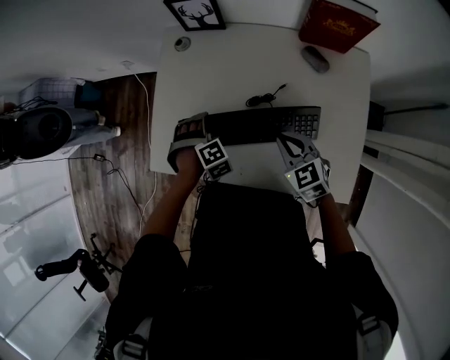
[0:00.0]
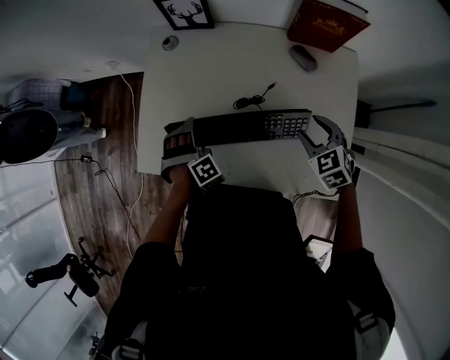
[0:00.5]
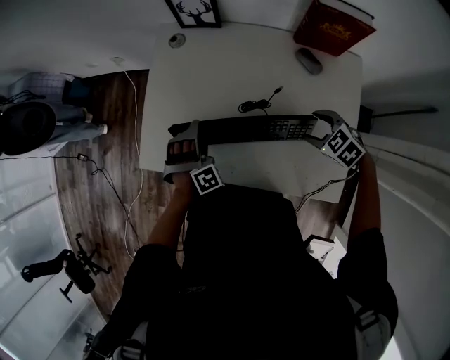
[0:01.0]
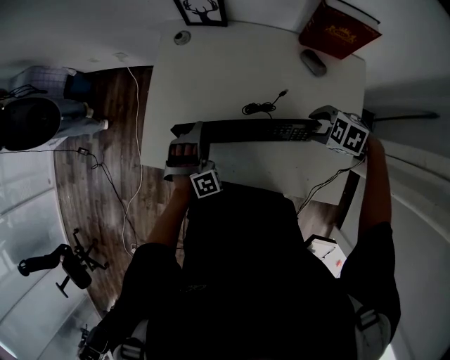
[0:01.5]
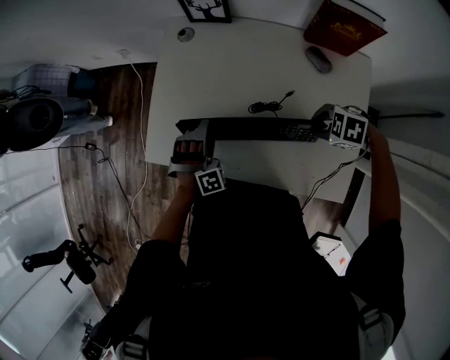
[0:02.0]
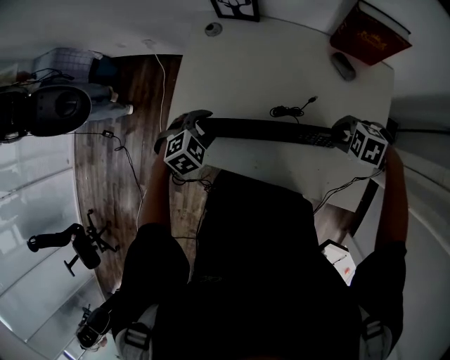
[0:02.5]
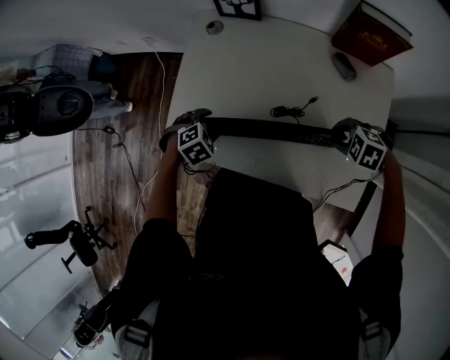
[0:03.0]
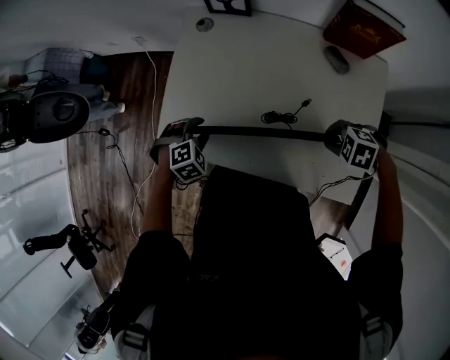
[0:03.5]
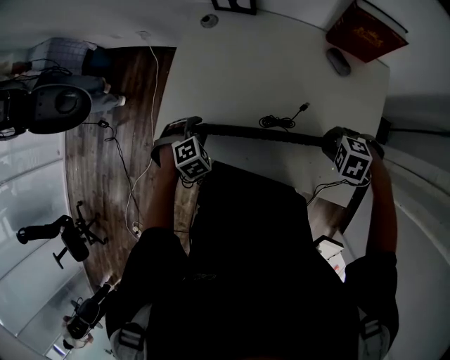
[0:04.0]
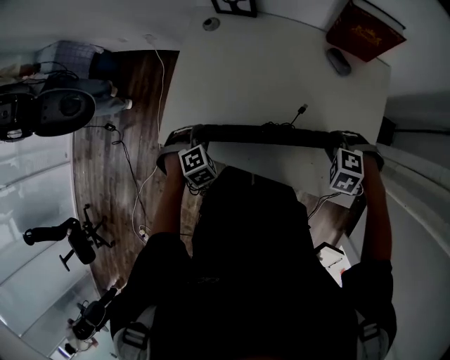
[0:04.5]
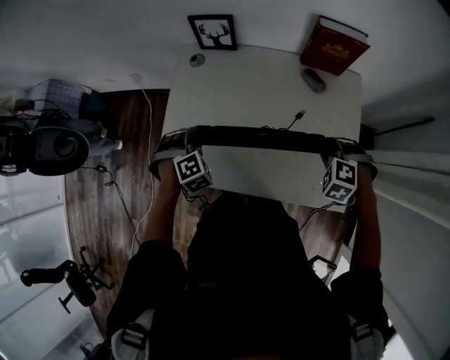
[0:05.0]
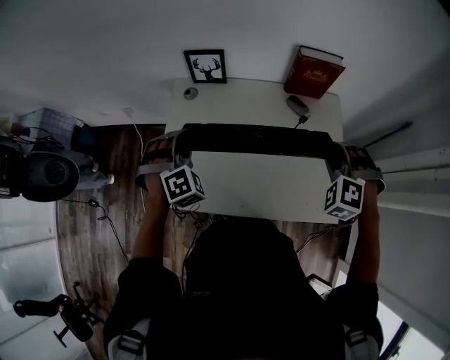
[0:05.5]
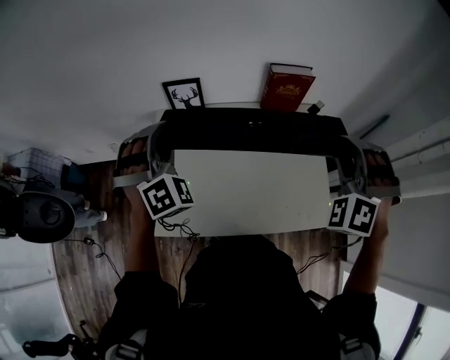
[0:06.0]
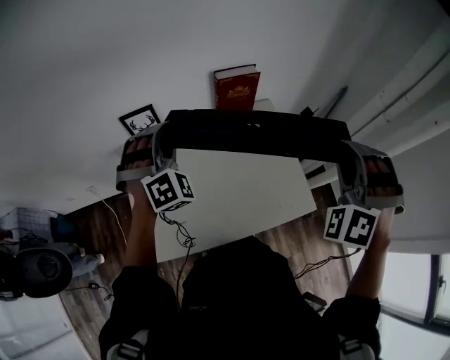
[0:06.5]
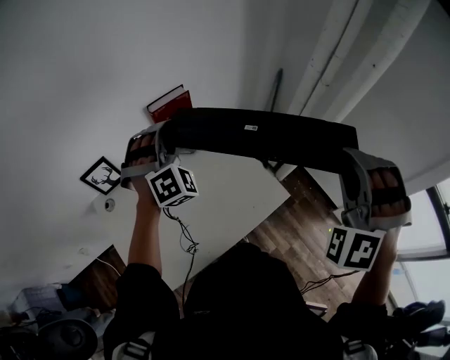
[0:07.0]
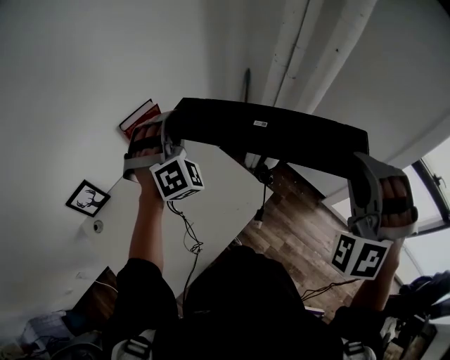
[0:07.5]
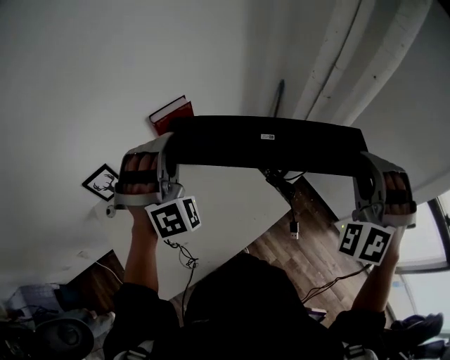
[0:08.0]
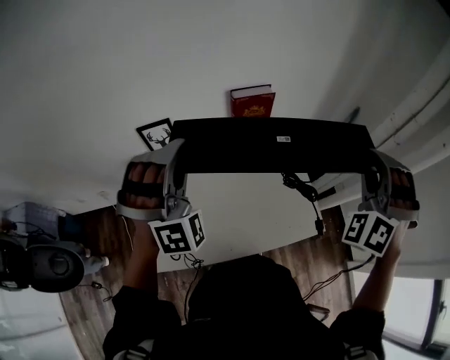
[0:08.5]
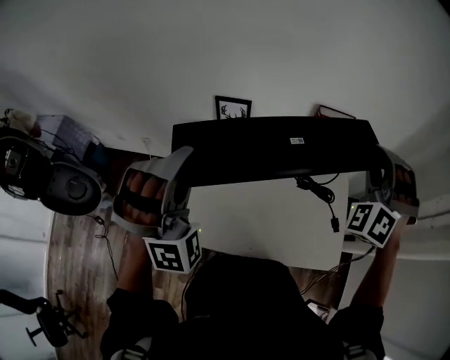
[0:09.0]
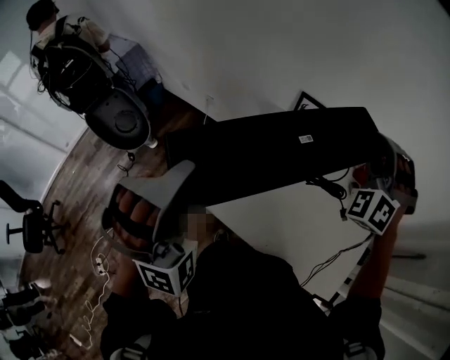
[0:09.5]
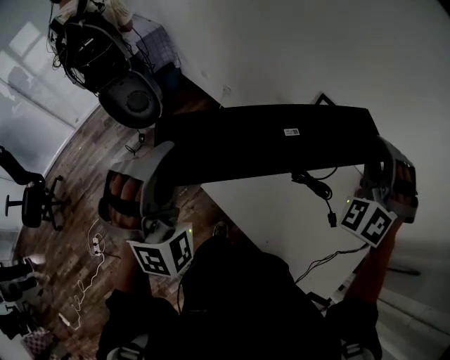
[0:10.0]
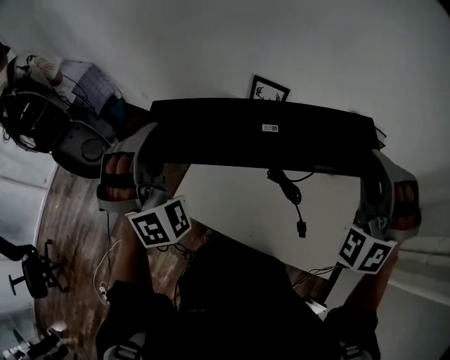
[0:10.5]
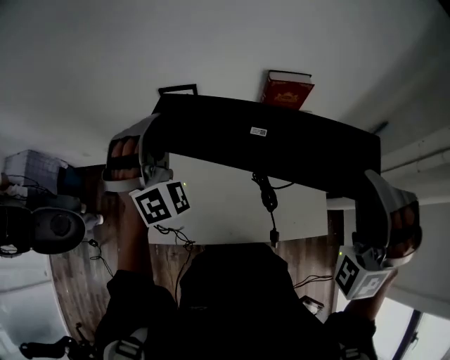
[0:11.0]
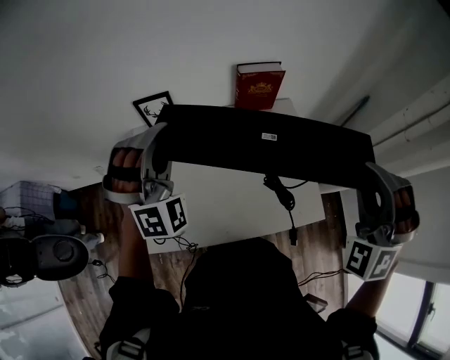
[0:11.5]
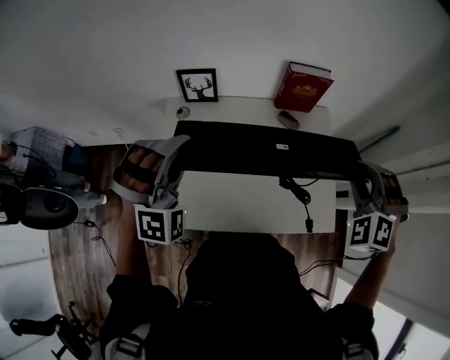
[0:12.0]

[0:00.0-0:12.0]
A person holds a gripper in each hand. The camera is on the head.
0:00.0 to 0:02.0: The right gripper shifts by some 10 cm, rotates roughly 60 degrees, and opens its fingers. The left gripper changes its angle by roughly 30 degrees.
0:02.0 to 0:04.0: The right gripper shifts by some 5 cm. The left gripper moves about 5 cm, points its fingers about 30 degrees further downward, and closes up.
0:04.0 to 0:06.0: Both grippers travel together upward, roughly 35 cm. The left gripper tilts its fingers about 50 degrees upward. The right gripper tips its fingers upward by approximately 50 degrees.
0:06.0 to 0:08.0: The left gripper shifts by roughly 30 cm, and changes its angle by roughly 40 degrees; the right gripper moves about 30 cm, and changes its angle by approximately 40 degrees.
0:08.0 to 0:10.0: The left gripper ends up about 50 cm from where it was, and swivels some 70 degrees; the right gripper shifts by roughly 60 cm, and changes its angle by roughly 70 degrees.
0:10.0 to 0:12.0: The left gripper moves approximately 30 cm, and rotates approximately 50 degrees, while the right gripper changes place by approximately 35 cm, and rotates approximately 40 degrees.

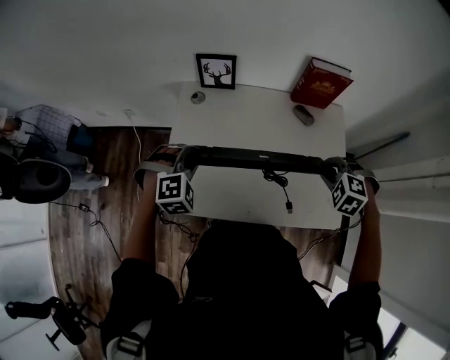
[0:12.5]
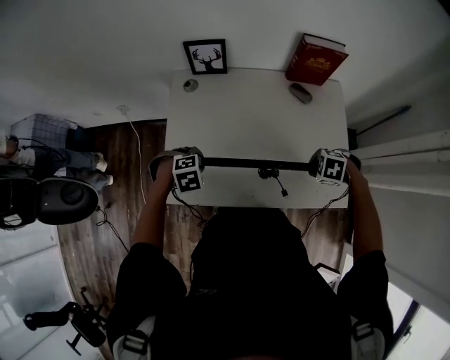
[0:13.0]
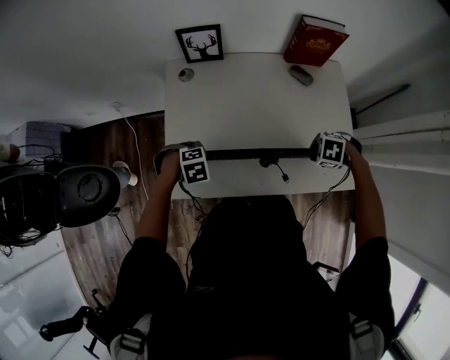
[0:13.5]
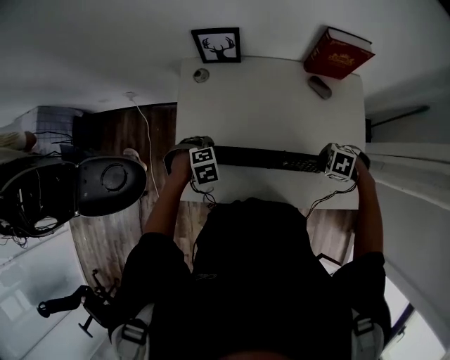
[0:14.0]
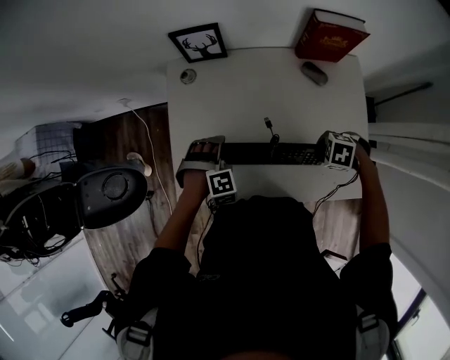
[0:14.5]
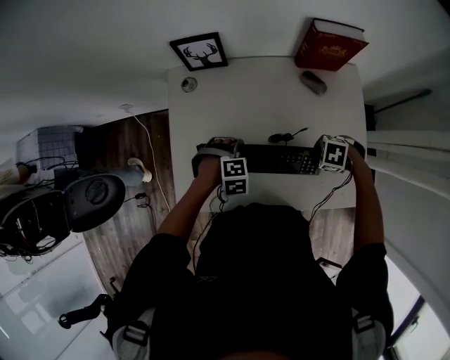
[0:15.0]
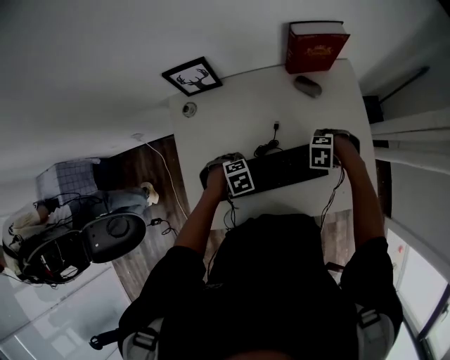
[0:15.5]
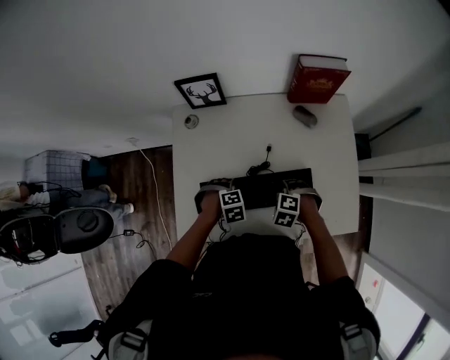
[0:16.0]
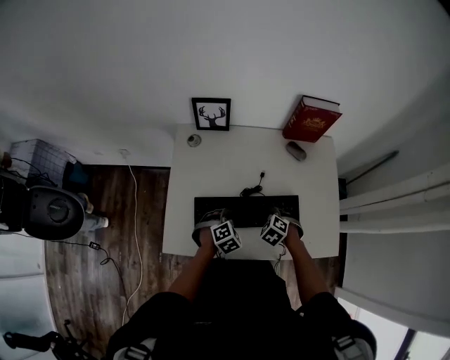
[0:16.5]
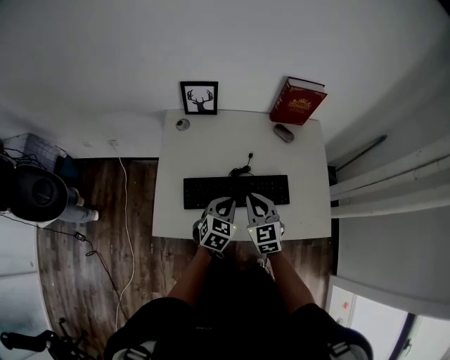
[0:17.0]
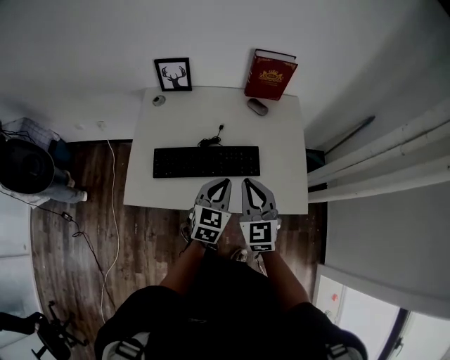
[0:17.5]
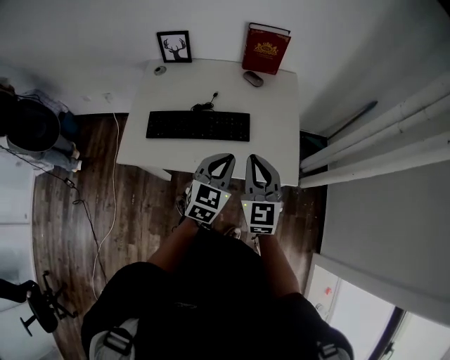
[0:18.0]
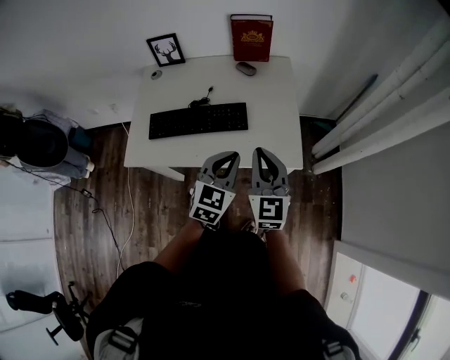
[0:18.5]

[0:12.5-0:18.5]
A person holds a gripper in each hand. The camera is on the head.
0:12.5 to 0:14.5: The two grippers go about 15 cm downward. The right gripper turns by roughly 40 degrees; the left gripper turns by some 20 degrees, and opens its fingers.
0:14.5 to 0:16.5: The right gripper changes place by some 15 cm, turns by some 30 degrees, and closes up. Meanwhile the left gripper changes place by some 10 cm, turns by roughly 40 degrees, and closes.
0:16.5 to 0:18.5: The left gripper moves to the right, upward and backward, some 40 cm, and tilts its fingers some 40 degrees upward. The right gripper moves upward, to the right and backward, about 40 cm, and tips its fingers upward by approximately 70 degrees.

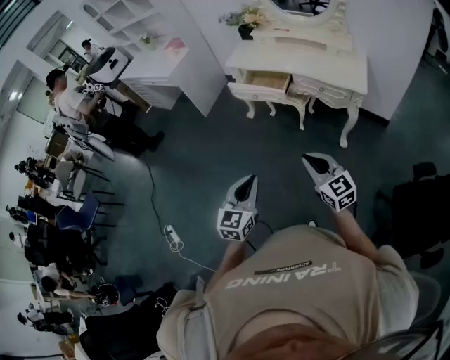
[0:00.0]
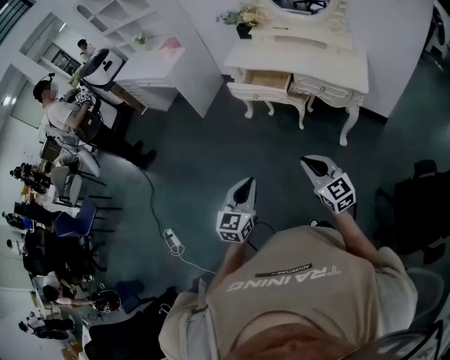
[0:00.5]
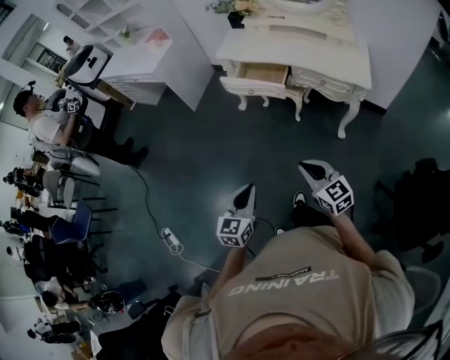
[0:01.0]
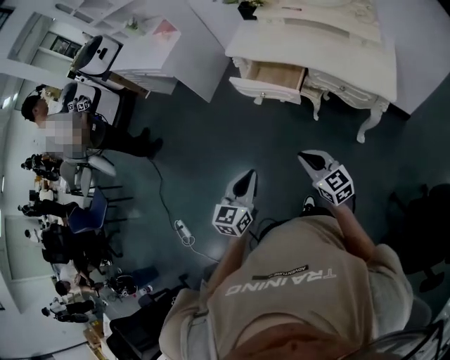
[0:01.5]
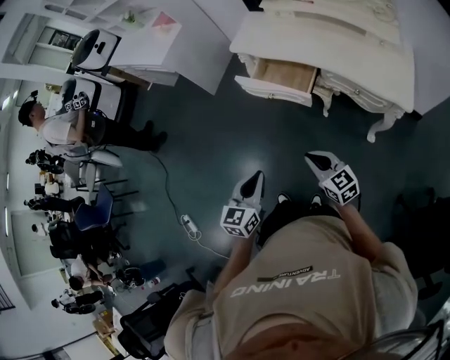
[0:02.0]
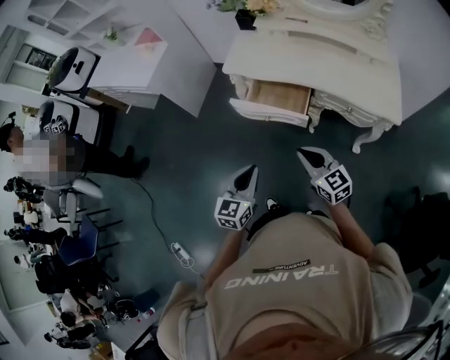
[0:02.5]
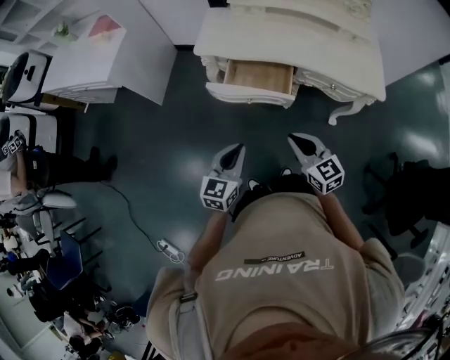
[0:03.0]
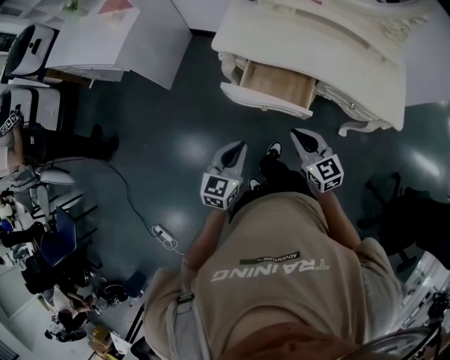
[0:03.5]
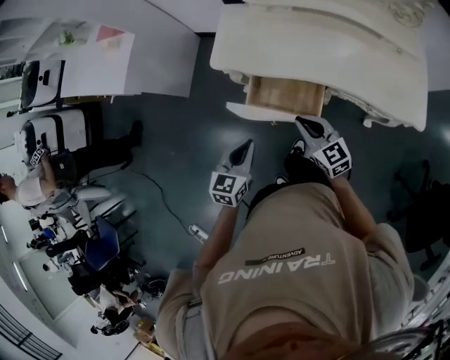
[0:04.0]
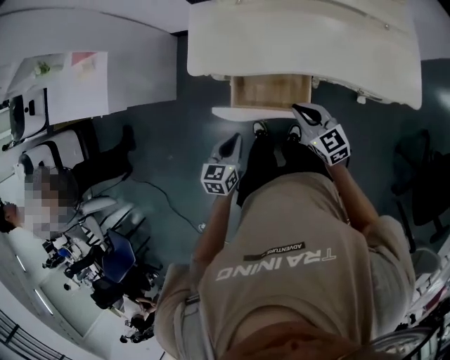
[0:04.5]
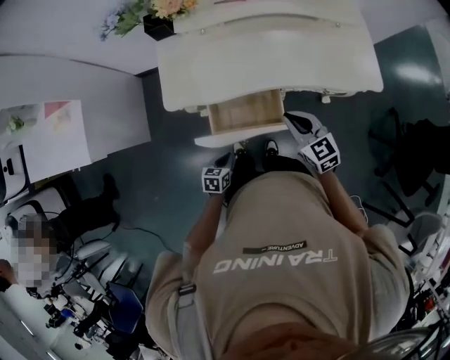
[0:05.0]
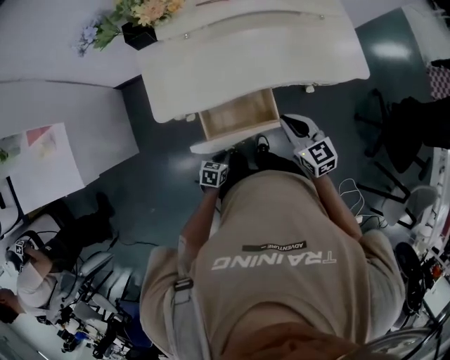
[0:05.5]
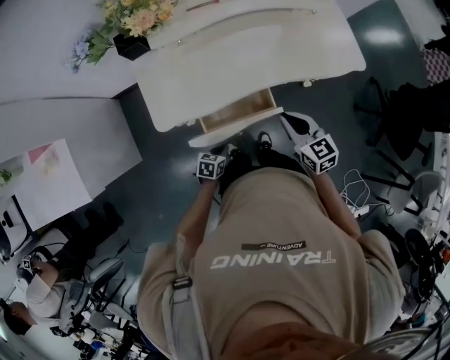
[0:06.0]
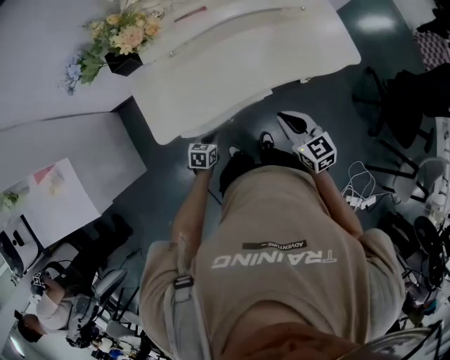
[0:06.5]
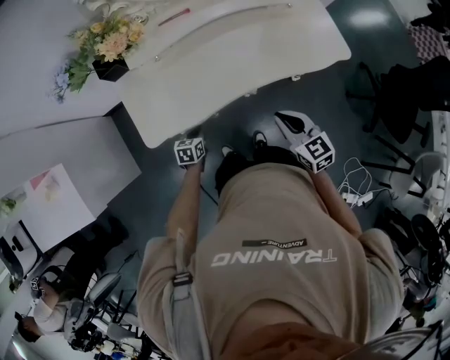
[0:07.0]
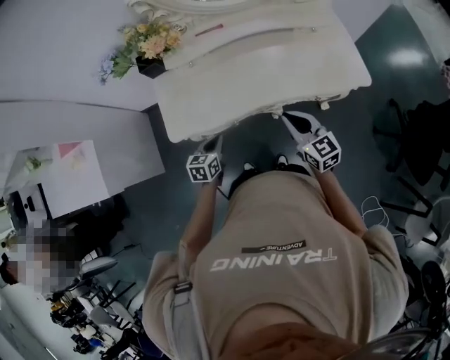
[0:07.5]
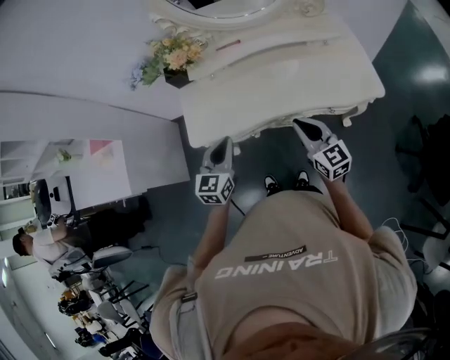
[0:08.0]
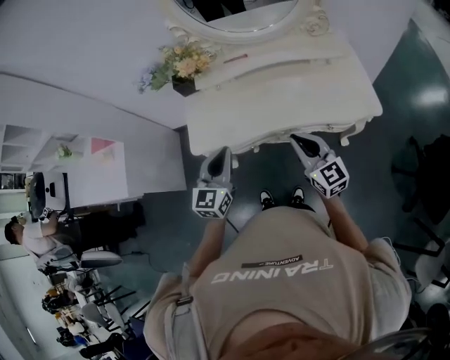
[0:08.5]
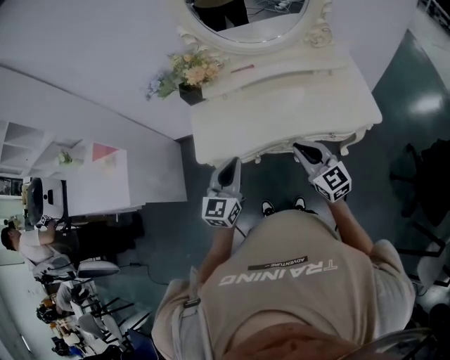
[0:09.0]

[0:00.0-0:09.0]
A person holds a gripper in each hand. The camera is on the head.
0:00.0 to 0:02.0: The right gripper is displaced forward and downward by some 40 cm. The left gripper heads forward, covering roughly 35 cm.
0:02.0 to 0:04.5: The pair of grippers is taken forward, roughly 40 cm. The left gripper swivels about 30 degrees. Meanwhile the right gripper rotates about 20 degrees.
0:04.5 to 0:07.0: The right gripper moves about 5 cm, and rotates about 30 degrees; the left gripper ends up approximately 25 cm from where it was, and changes its angle by roughly 30 degrees.
0:07.0 to 0:09.0: The right gripper travels upward and backward by roughly 15 cm, and swivels some 30 degrees. The left gripper travels upward by approximately 40 cm, and tilts its fingers roughly 40 degrees upward.
